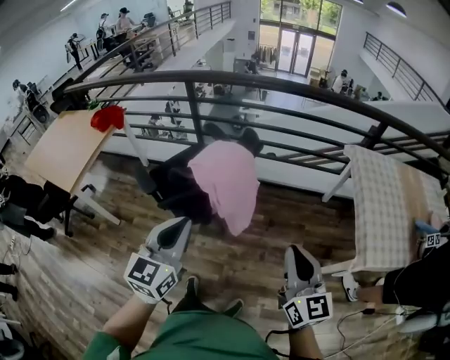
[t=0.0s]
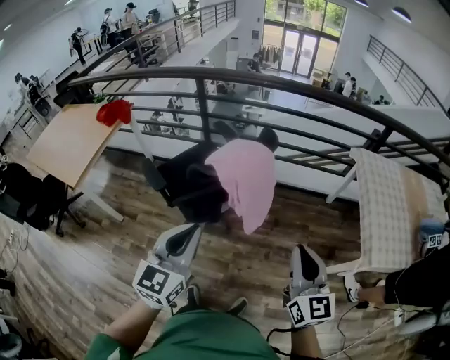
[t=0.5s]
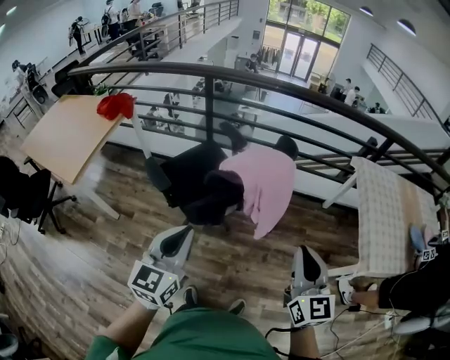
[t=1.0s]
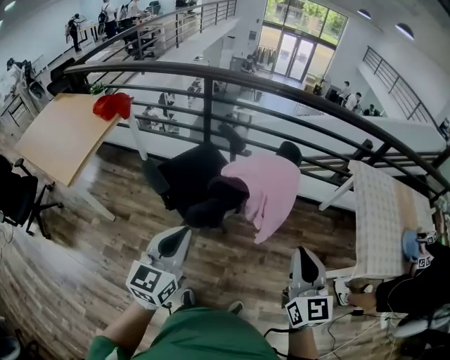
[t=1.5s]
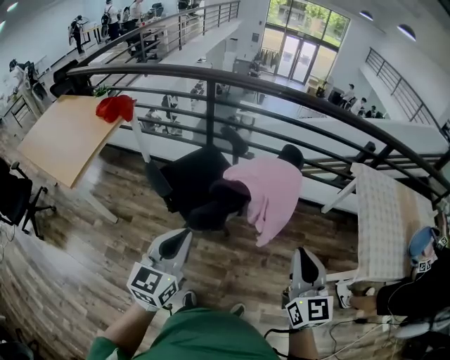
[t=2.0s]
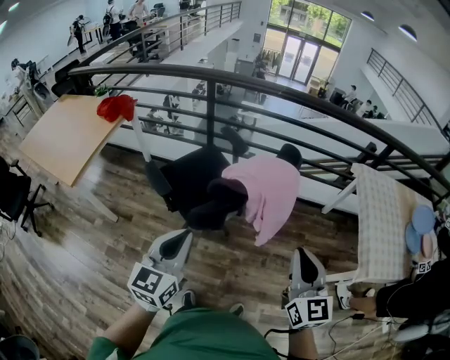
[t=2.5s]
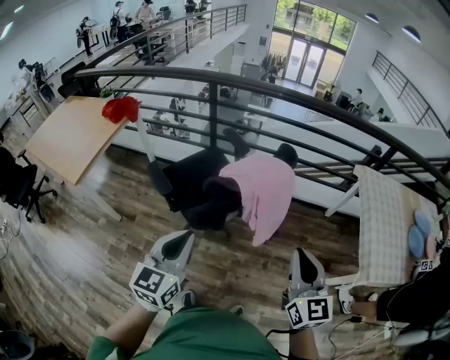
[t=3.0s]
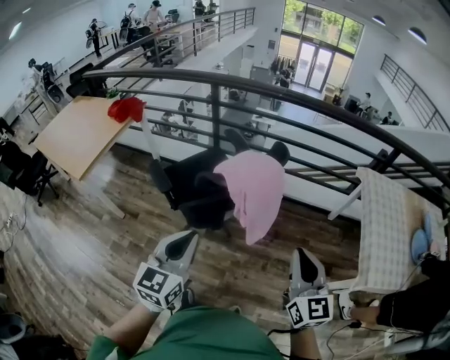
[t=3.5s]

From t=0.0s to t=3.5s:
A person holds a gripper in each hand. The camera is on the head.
From t=0.0s to t=2.0s: The grippers both shift to the left by roughly 15 cm.
From t=2.0s to t=3.5s: Both grippers move to the right, about 10 cm.

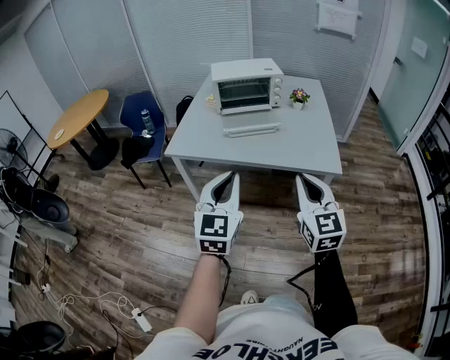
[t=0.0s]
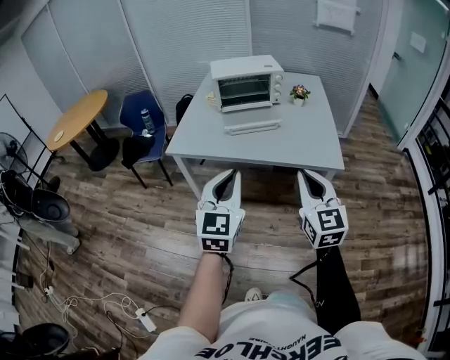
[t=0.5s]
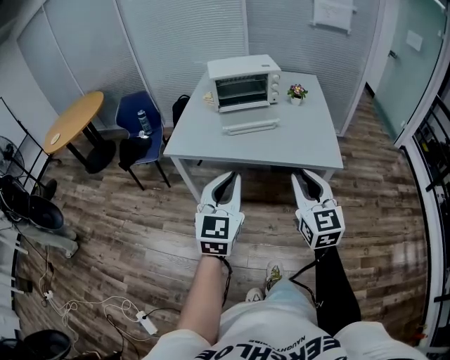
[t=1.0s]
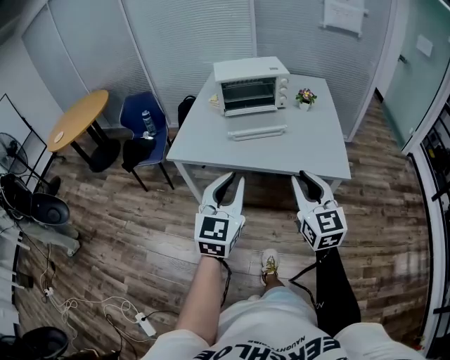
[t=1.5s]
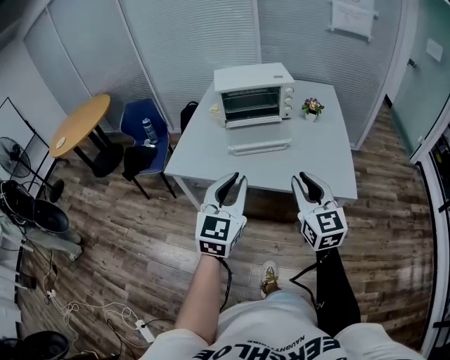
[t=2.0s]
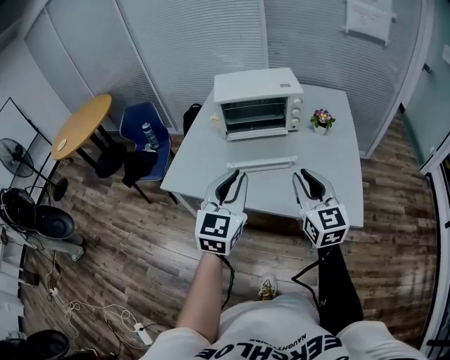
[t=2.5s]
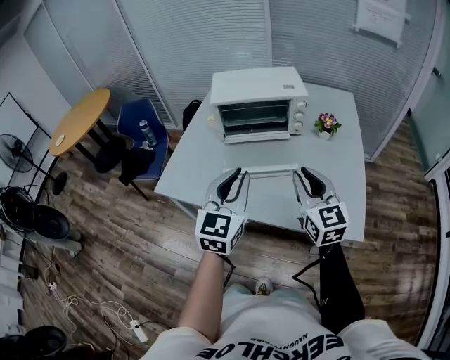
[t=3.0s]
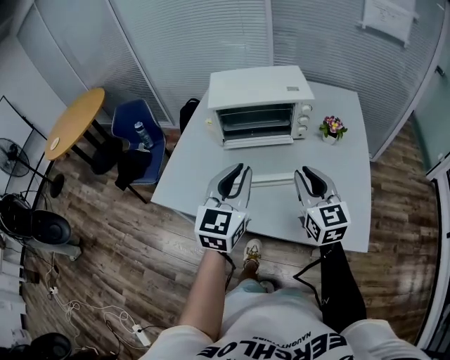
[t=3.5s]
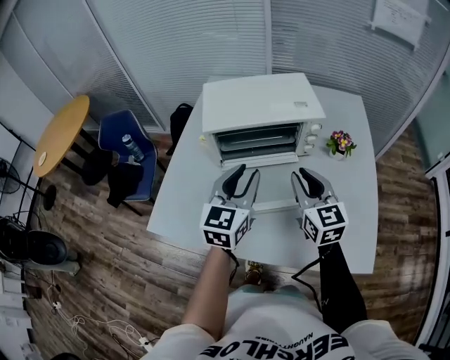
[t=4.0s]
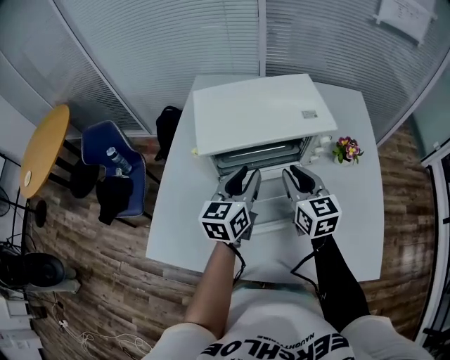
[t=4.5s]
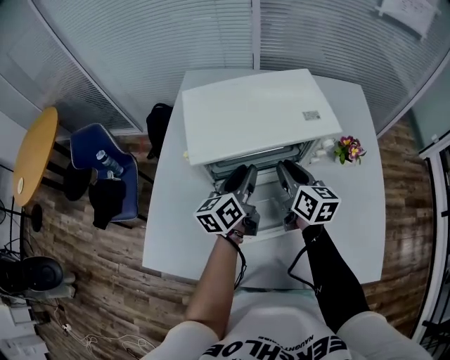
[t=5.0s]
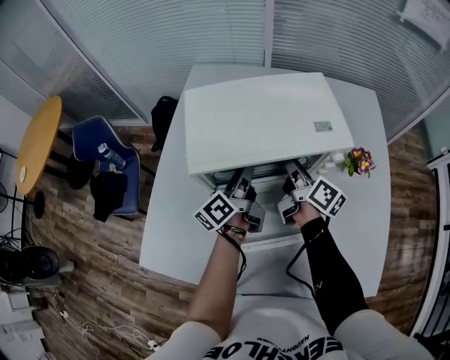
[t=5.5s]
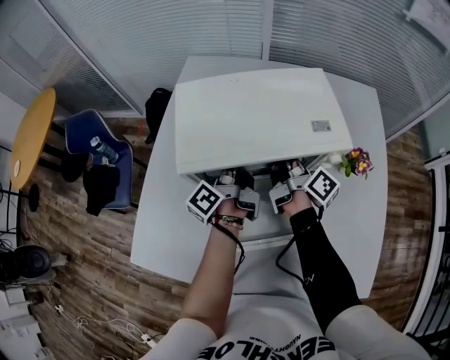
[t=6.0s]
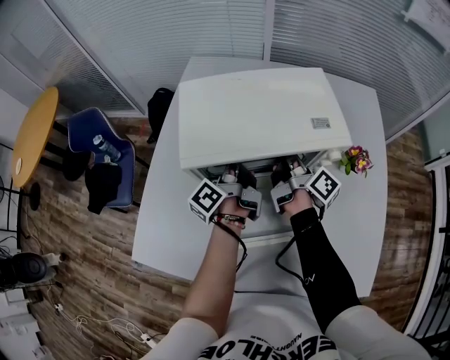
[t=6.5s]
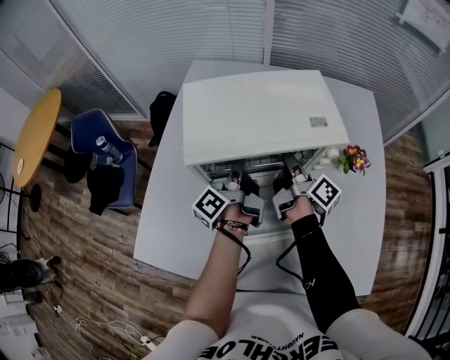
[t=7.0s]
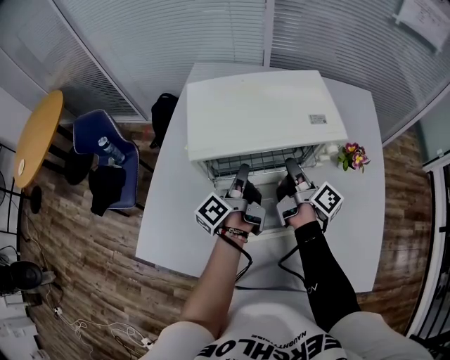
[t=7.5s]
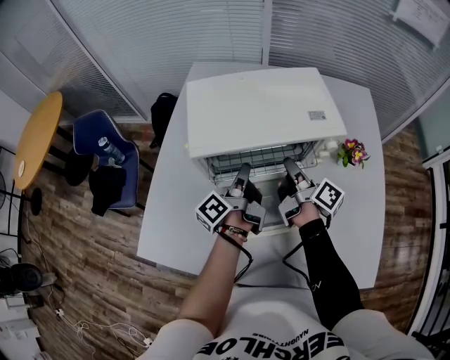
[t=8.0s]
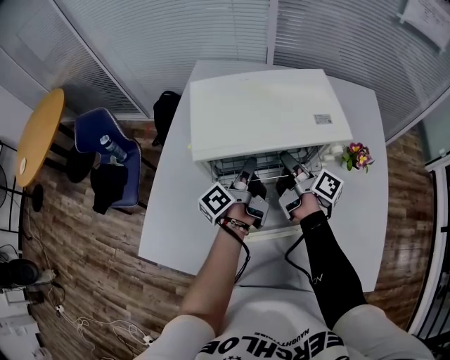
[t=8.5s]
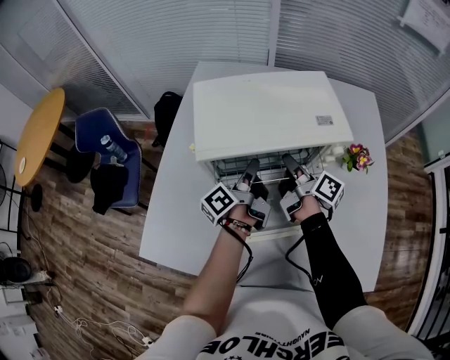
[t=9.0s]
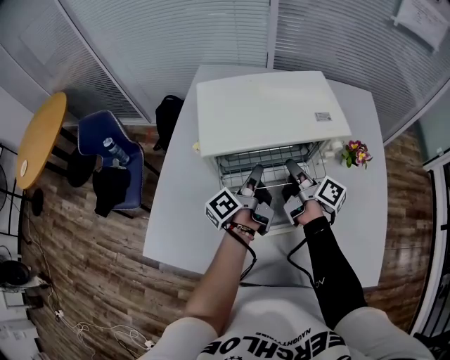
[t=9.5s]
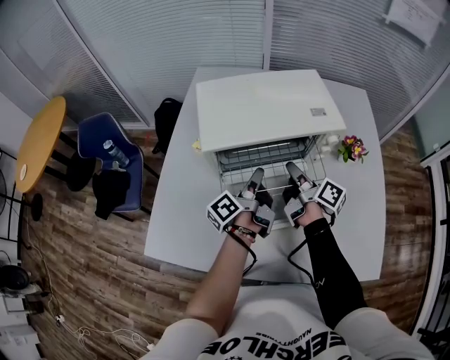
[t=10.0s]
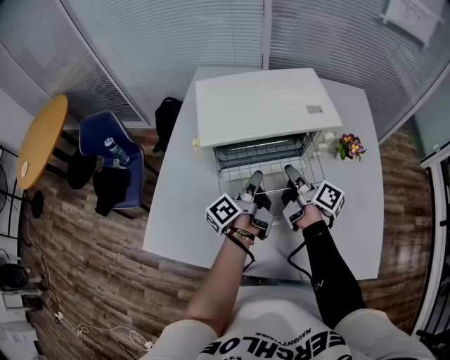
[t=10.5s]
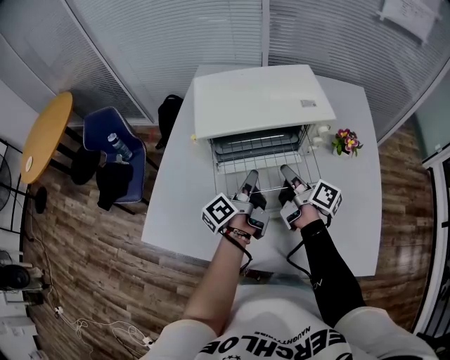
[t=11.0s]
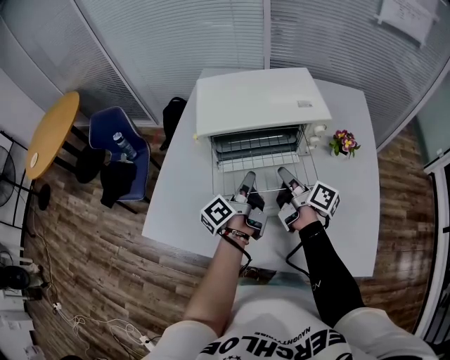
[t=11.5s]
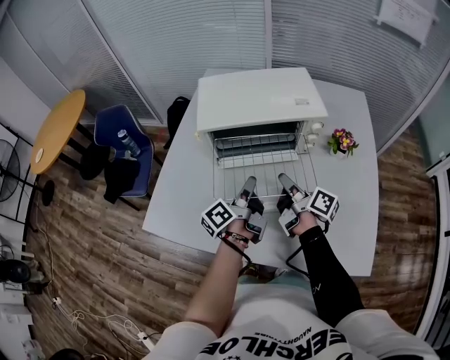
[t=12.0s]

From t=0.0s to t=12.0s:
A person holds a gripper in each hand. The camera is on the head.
From t=0.0s to t=2.0s: The grippers both shift forward by some 15 cm.
From t=2.0s to t=4.0s: Both grippers travel together forward, roughly 40 cm. The left gripper opens up.
From t=4.0s to t=6.0s: The two grippers go roughly 25 cm forward and downward. The left gripper rolls counterclockwise, seen from behind, by approximately 80 degrees. Meanwhile the right gripper rotates around the line of its fingers by about 70 degrees, clockwise from behind.
From t=6.0s to t=8.0s: Both grippers move backward, some 10 cm.
From t=8.0s to t=10.0s: The grippers make only small movements.
From t=10.0s to t=12.0s: The two grippers go approximately 10 cm backward.

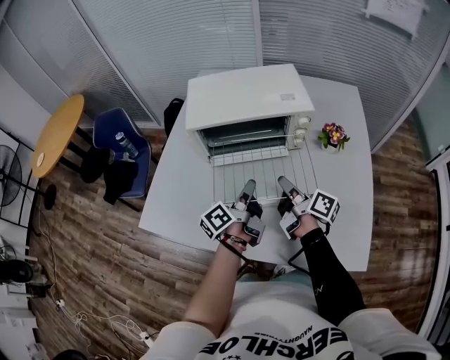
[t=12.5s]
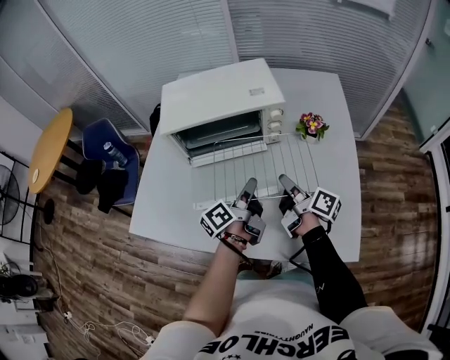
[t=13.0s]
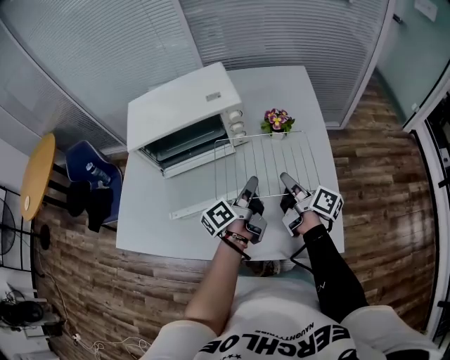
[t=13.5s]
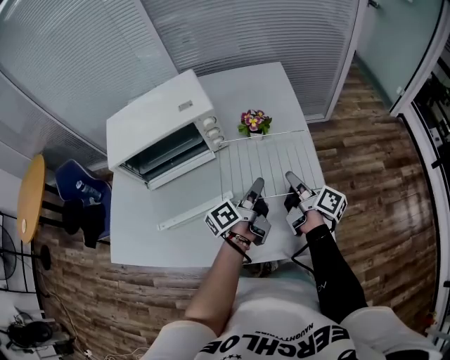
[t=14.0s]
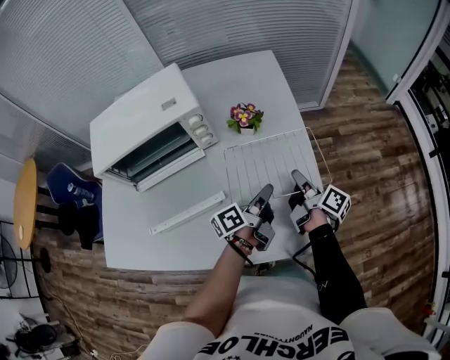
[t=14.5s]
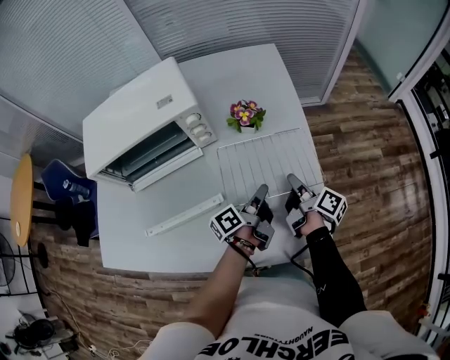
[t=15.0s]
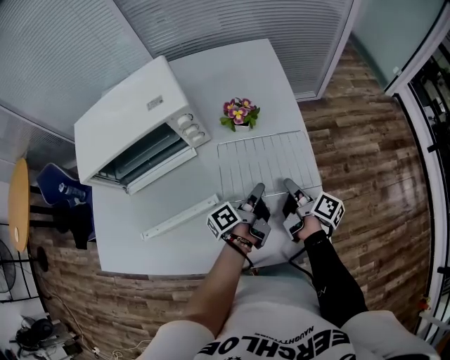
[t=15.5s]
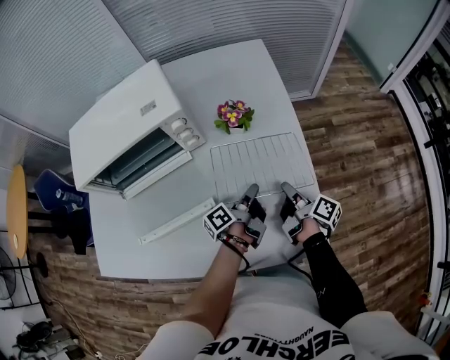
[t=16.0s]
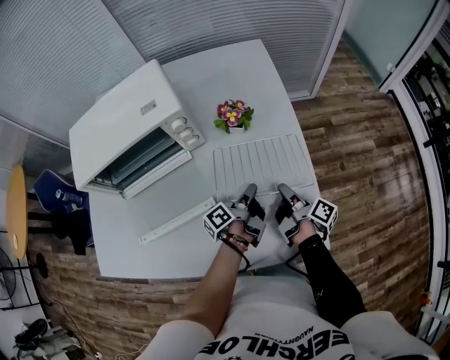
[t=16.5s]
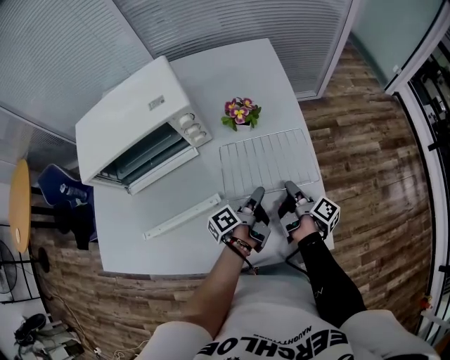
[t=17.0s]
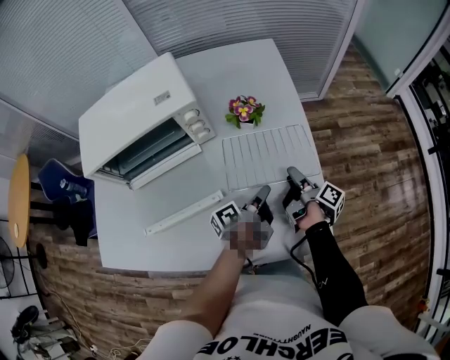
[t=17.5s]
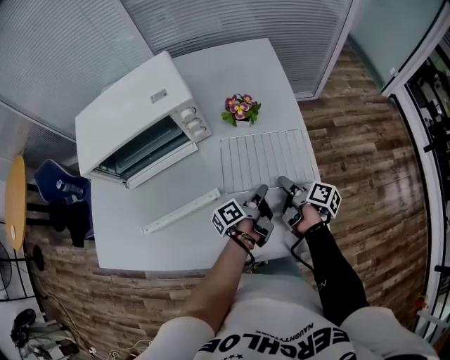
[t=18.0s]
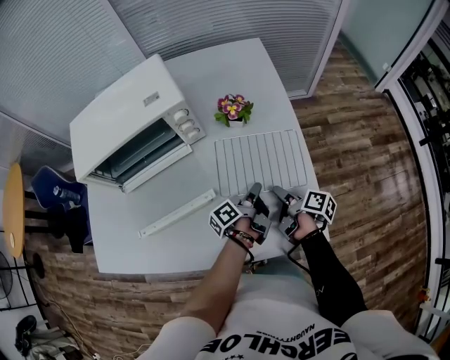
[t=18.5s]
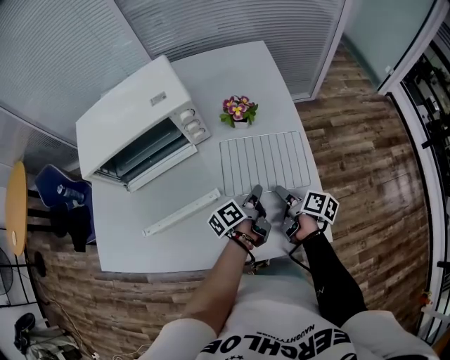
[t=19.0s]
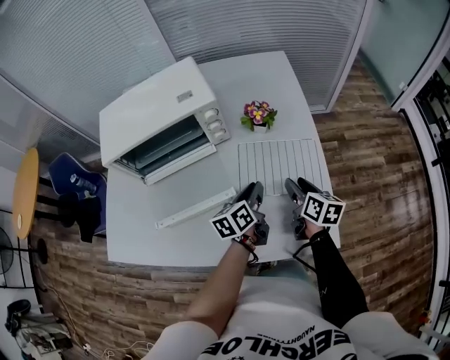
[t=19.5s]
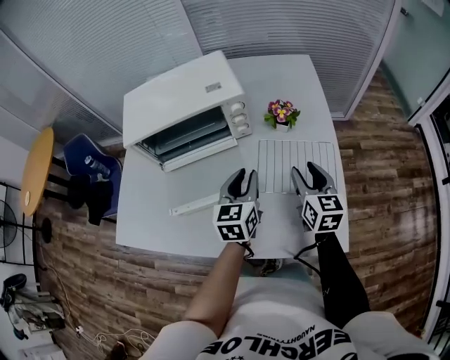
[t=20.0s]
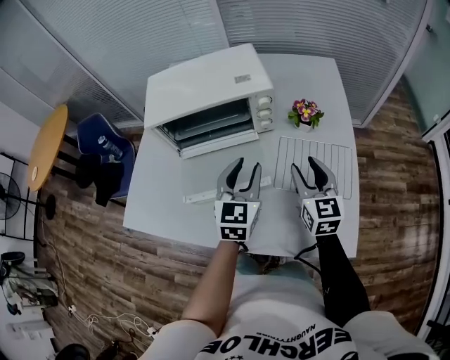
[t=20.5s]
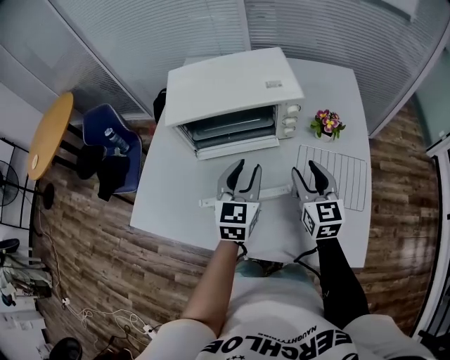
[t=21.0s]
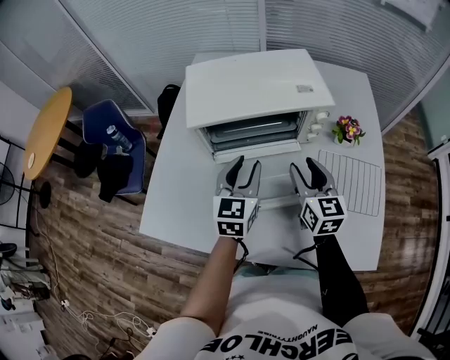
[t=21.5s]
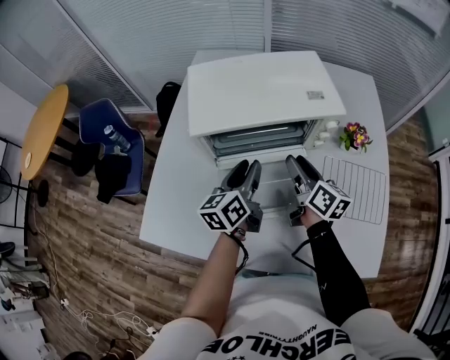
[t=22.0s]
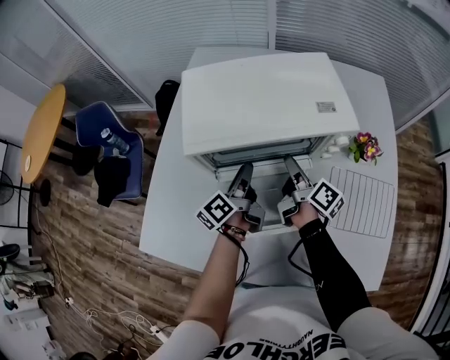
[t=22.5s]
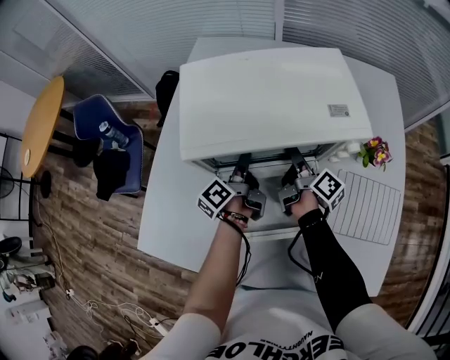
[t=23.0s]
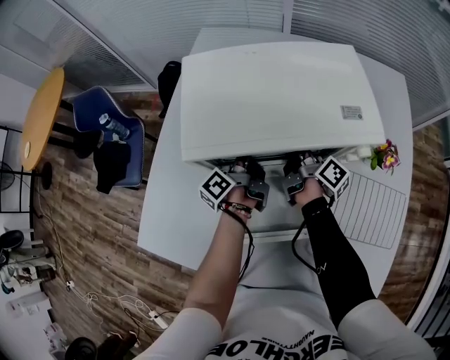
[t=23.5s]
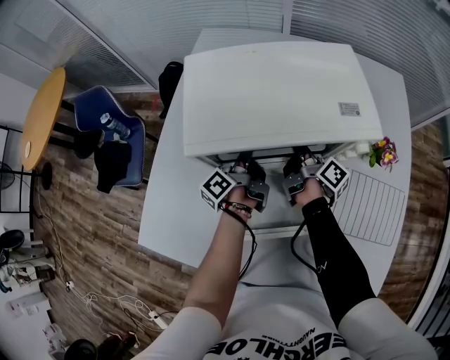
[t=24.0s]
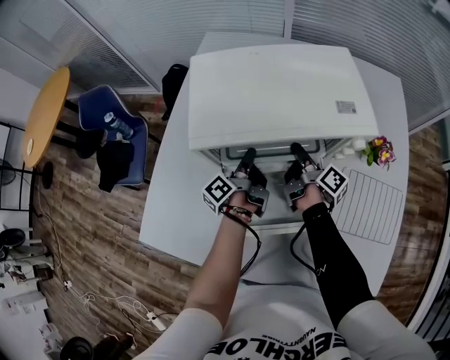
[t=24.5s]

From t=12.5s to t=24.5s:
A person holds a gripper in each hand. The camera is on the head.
From t=12.5s to t=14.5s: The right gripper ends up some 30 cm from where it was, and rotates about 30 degrees. The left gripper ends up approximately 35 cm from where it was, and swivels about 30 degrees.
From t=14.5s to t=16.5s: The two grippers go some 5 cm downward. The left gripper changes its angle by approximately 20 degrees.
From t=16.5s to t=18.5s: The right gripper turns by approximately 20 degrees, and opens its fingers.
From t=18.5s to t=20.5s: The two grippers go about 25 cm upward and to the left. The right gripper rolls counterclockwise, seen from behind, by roughly 80 degrees. The left gripper rolls clockwise, seen from behind, by approximately 90 degrees, and opens its fingers.
From t=20.5s to t=22.5s: Both grippers move to the left, forward and downward, about 30 cm. The left gripper rolls counterclockwise, seen from behind, by approximately 70 degrees. Meanwhile the right gripper rolls clockwise, seen from behind, by roughly 70 degrees.
From t=22.5s to t=24.5s: The grippers both shift downward by some 5 cm. The right gripper closes up.
